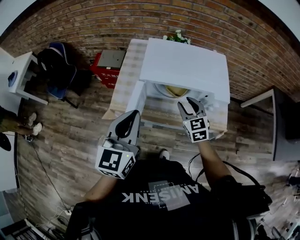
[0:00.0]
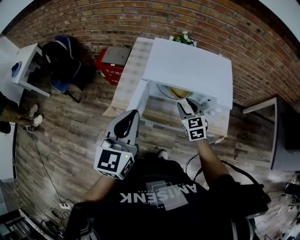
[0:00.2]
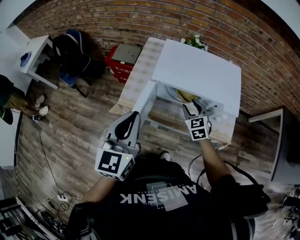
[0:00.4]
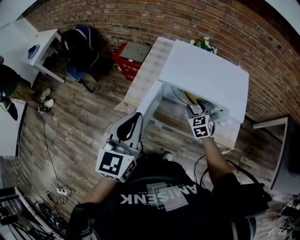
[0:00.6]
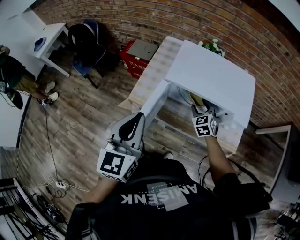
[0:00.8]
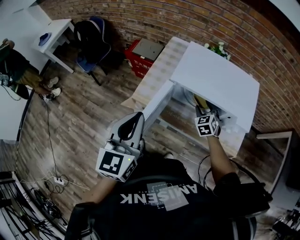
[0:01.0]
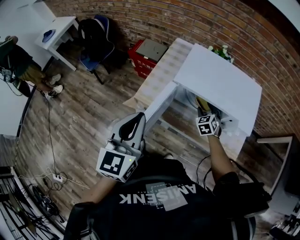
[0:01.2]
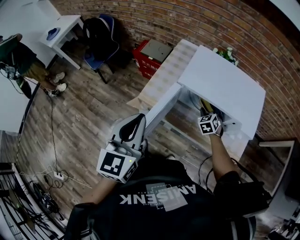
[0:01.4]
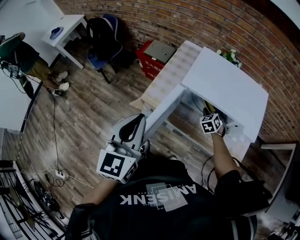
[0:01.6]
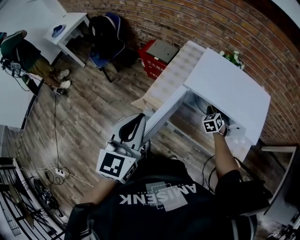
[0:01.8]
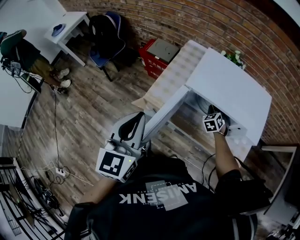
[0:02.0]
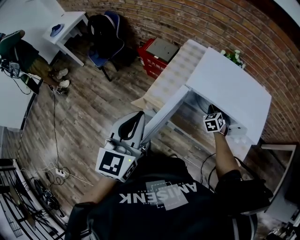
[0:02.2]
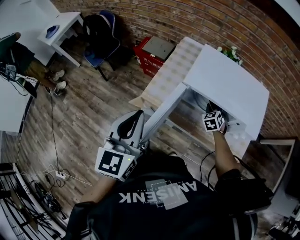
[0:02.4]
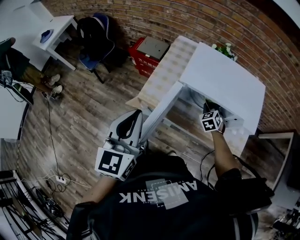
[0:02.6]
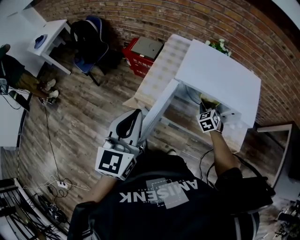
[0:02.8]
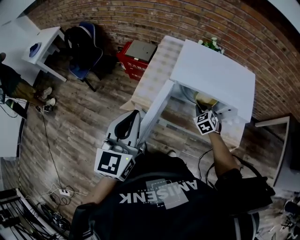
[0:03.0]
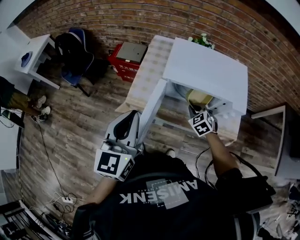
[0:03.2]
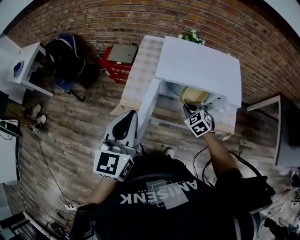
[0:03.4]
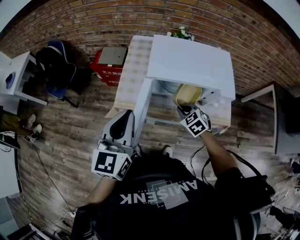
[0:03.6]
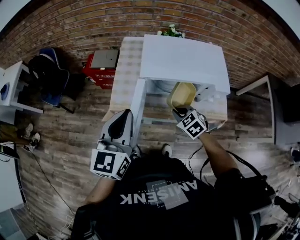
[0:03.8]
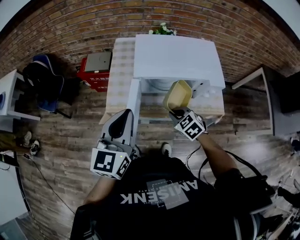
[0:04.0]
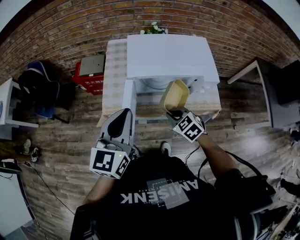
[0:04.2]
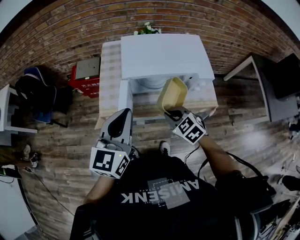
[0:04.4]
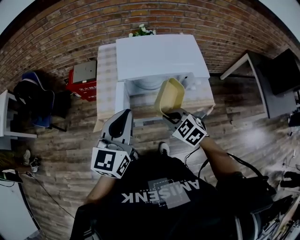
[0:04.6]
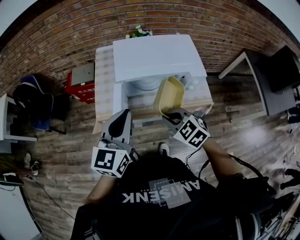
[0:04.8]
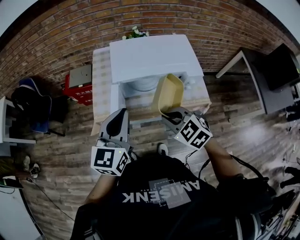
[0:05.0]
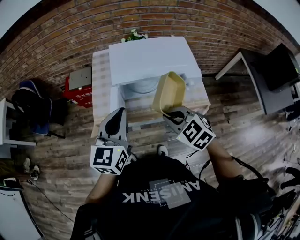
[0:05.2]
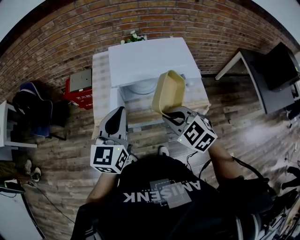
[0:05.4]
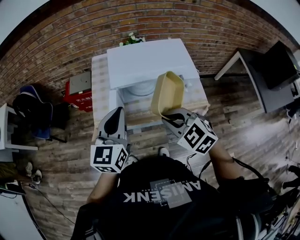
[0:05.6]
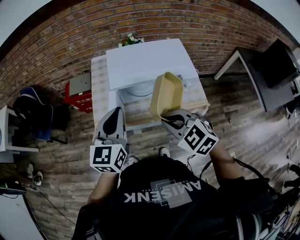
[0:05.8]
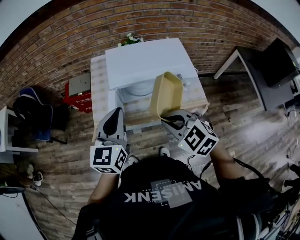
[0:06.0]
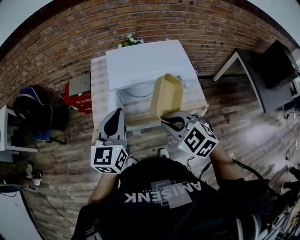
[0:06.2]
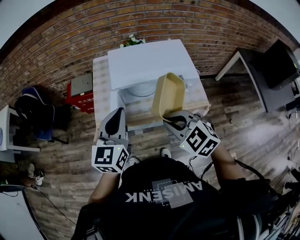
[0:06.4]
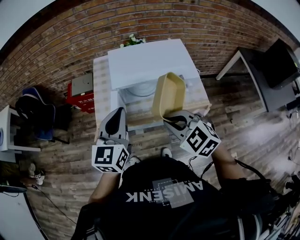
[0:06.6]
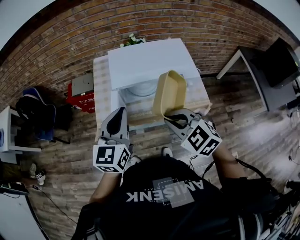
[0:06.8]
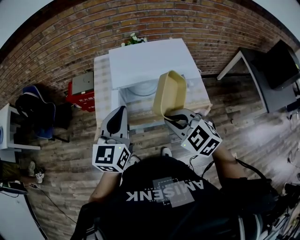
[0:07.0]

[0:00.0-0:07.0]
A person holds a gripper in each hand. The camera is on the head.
0:00.0 to 0:01.4: The right gripper goes some 15 cm downward and forward, and changes its angle by about 30 degrees. The left gripper travels to the left by about 5 cm, and swivels about 20 degrees.
0:01.4 to 0:02.8: The right gripper closes its fingers.
0:02.8 to 0:04.2: The left gripper travels to the right by some 5 cm, and swivels roughly 30 degrees; the right gripper heads backward and upward, covering about 20 cm.
0:04.2 to 0:05.6: The right gripper shifts about 15 cm upward.
0:05.6 to 0:07.0: There are only small adjustments of the grippers.

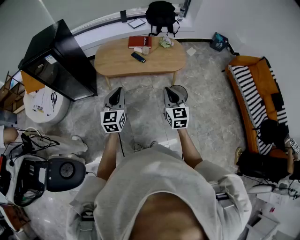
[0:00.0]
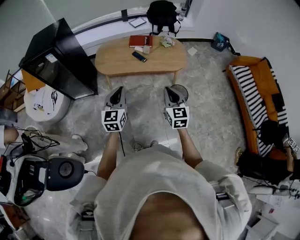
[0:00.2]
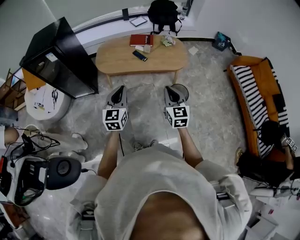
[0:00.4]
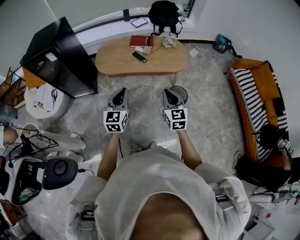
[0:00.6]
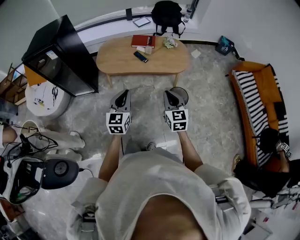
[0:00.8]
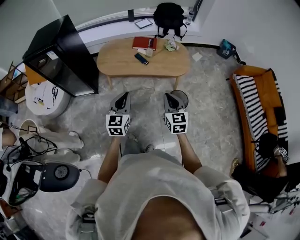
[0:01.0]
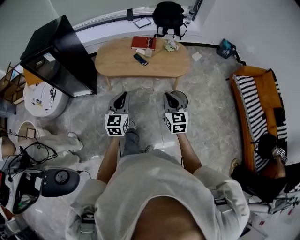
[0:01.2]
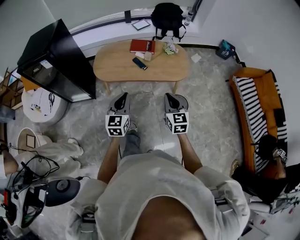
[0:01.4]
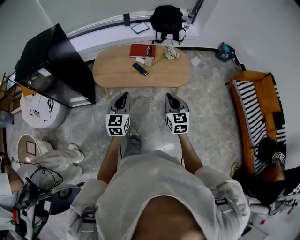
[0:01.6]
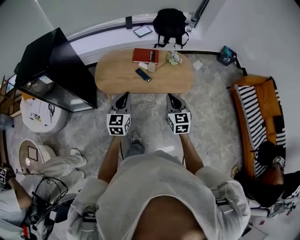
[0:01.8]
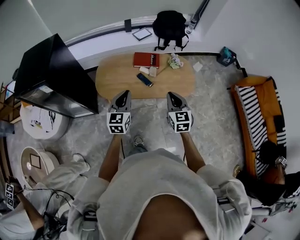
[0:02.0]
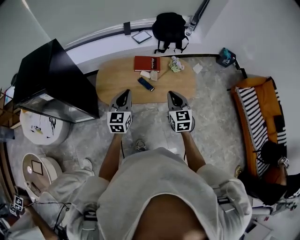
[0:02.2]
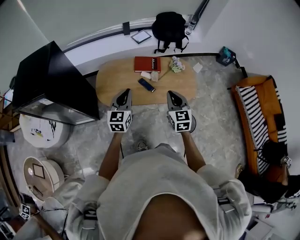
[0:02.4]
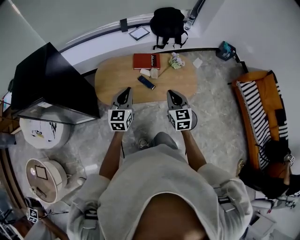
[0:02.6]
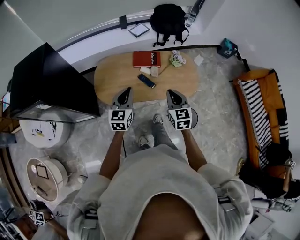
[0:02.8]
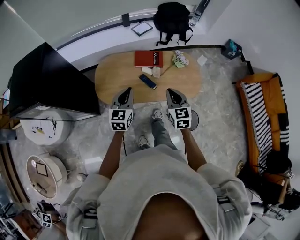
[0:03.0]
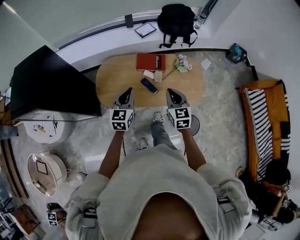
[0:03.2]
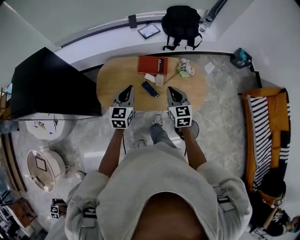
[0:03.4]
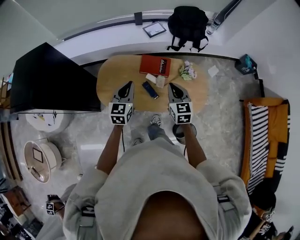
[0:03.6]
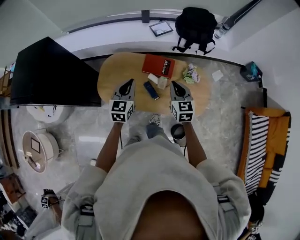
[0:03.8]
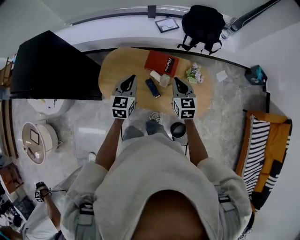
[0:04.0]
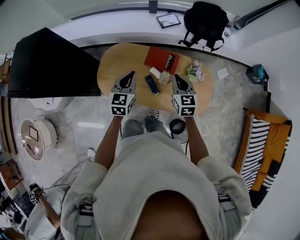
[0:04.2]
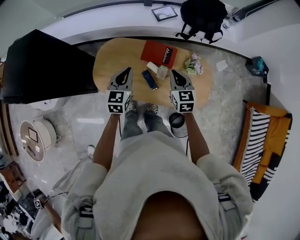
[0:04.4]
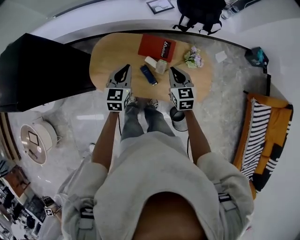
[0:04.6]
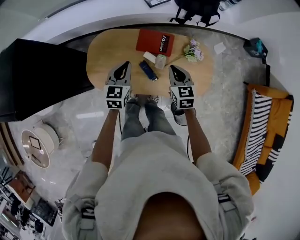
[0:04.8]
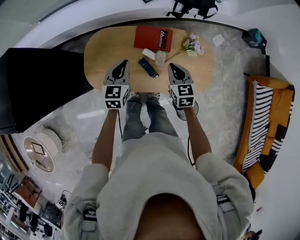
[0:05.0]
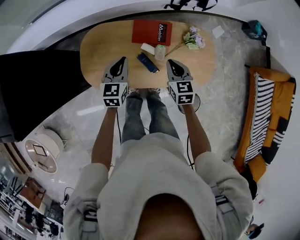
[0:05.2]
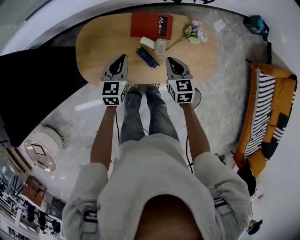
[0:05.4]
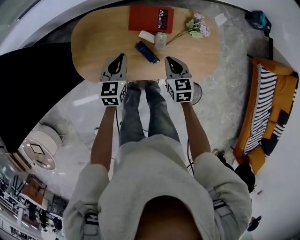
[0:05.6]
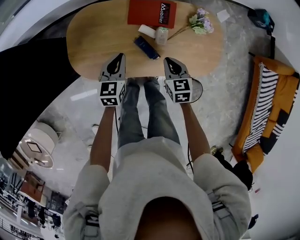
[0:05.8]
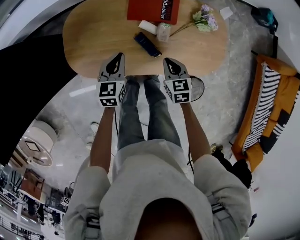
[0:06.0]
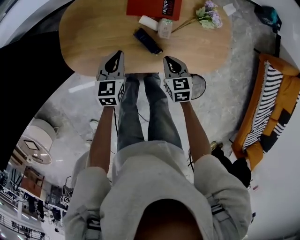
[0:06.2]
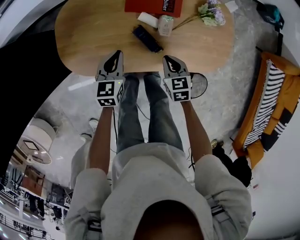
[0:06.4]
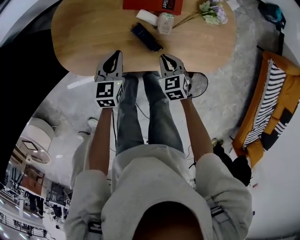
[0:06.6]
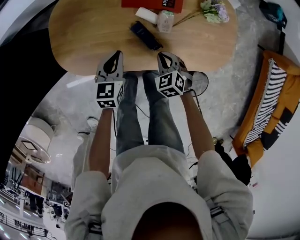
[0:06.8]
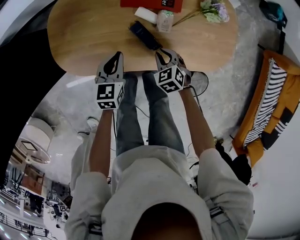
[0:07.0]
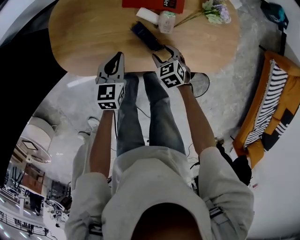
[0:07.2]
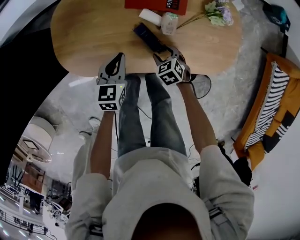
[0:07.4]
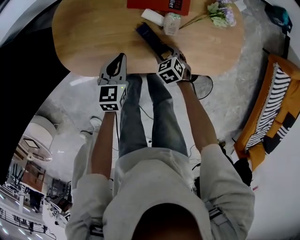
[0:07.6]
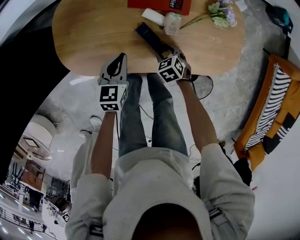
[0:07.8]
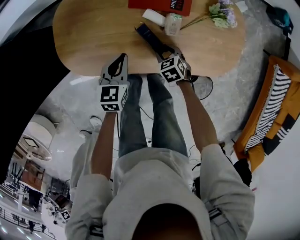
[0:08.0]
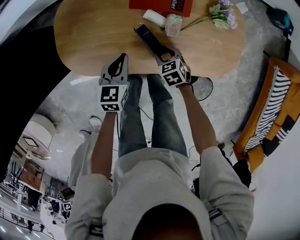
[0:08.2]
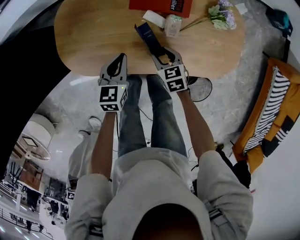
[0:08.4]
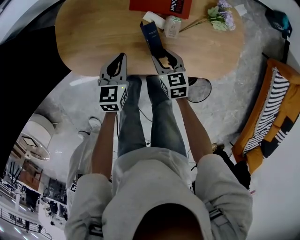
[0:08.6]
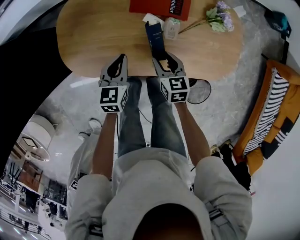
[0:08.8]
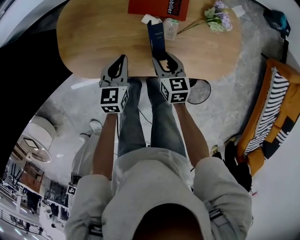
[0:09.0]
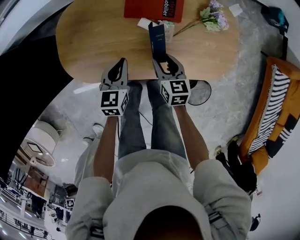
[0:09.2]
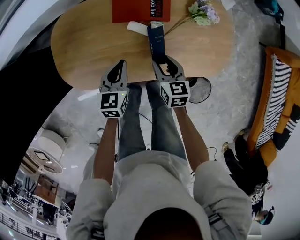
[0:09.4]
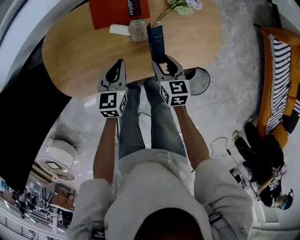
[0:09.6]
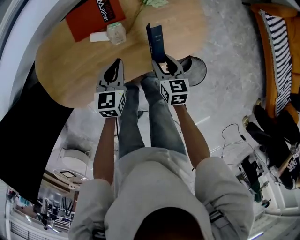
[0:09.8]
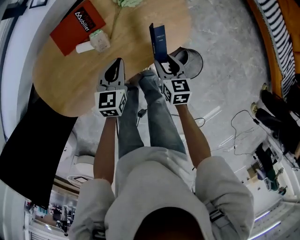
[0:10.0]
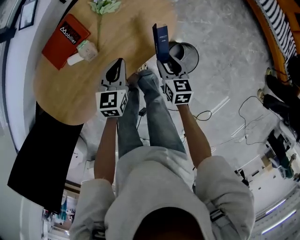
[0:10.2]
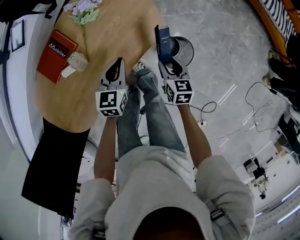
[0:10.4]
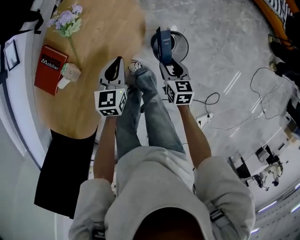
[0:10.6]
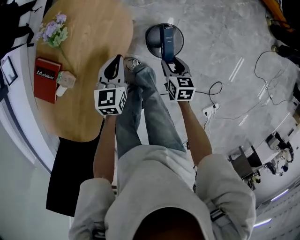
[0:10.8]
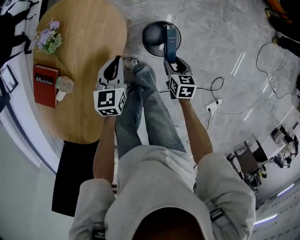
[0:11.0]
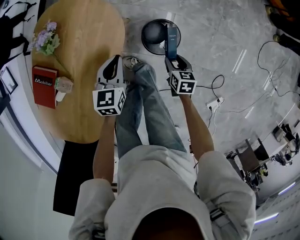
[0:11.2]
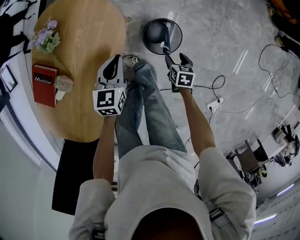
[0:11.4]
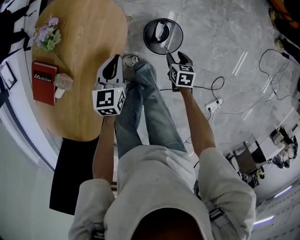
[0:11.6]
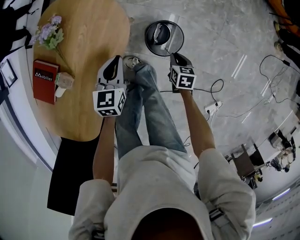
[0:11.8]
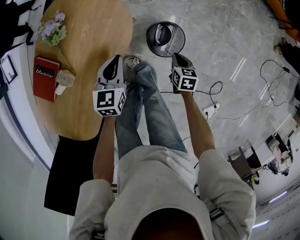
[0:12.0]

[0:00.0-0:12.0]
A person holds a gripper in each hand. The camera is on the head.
0:00.0 to 0:01.6: Both grippers travel together forward, about 15 cm.
0:01.6 to 0:03.0: The left gripper heads forward, covering roughly 20 cm. Meanwhile the right gripper travels forward and to the left by roughly 20 cm.
0:03.0 to 0:04.4: The grippers both shift forward by roughly 20 cm.
0:04.4 to 0:06.0: The right gripper travels downward and backward by approximately 25 cm, and swivels some 20 degrees. Meanwhile the left gripper travels downward by approximately 20 cm.
0:06.0 to 0:07.6: The left gripper travels downward by some 10 cm; the right gripper goes about 15 cm downward, turns by roughly 30 degrees, and opens its fingers.
0:07.6 to 0:09.0: The right gripper shifts about 10 cm upward, and rotates approximately 40 degrees.
0:09.0 to 0:10.4: The left gripper changes place by approximately 35 cm, and turns by approximately 50 degrees; the right gripper moves approximately 35 cm, and swivels approximately 50 degrees.
0:10.4 to 0:12.0: The right gripper goes approximately 15 cm to the right and downward, changes its angle by approximately 20 degrees, and closes; the left gripper shifts roughly 10 cm to the right.

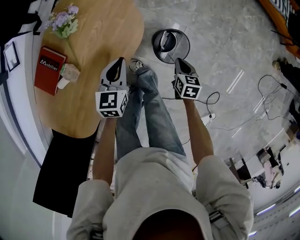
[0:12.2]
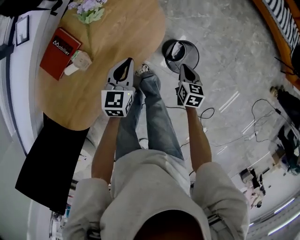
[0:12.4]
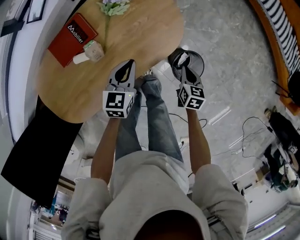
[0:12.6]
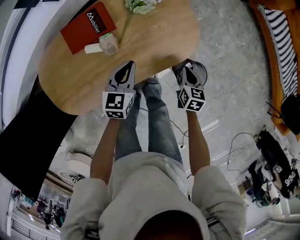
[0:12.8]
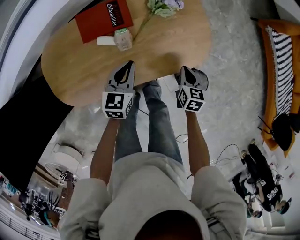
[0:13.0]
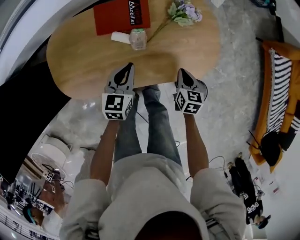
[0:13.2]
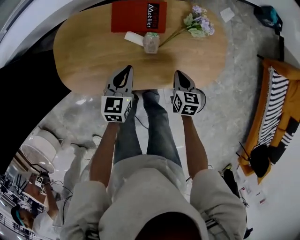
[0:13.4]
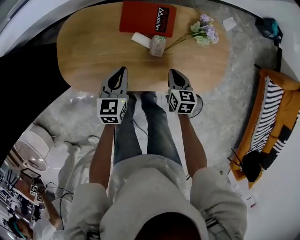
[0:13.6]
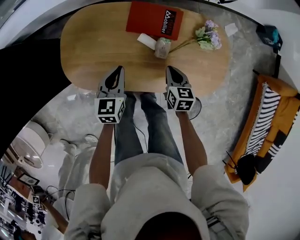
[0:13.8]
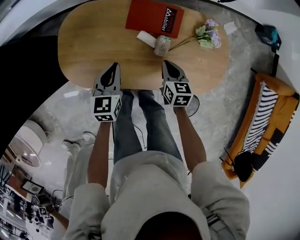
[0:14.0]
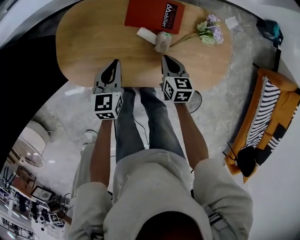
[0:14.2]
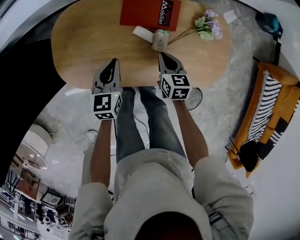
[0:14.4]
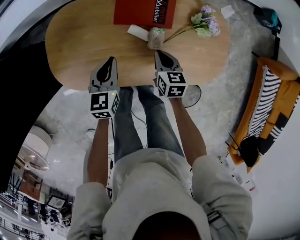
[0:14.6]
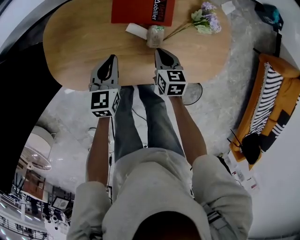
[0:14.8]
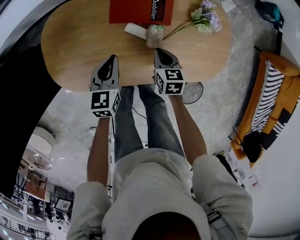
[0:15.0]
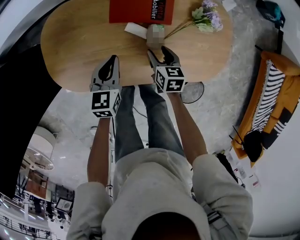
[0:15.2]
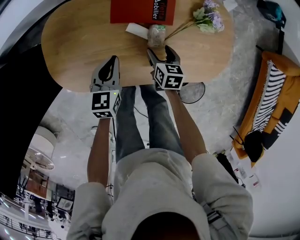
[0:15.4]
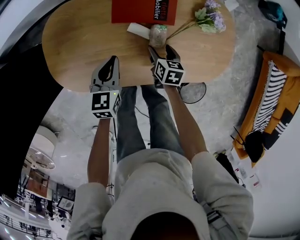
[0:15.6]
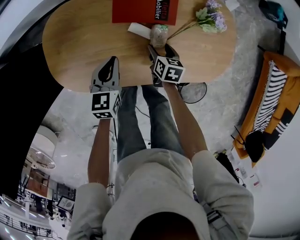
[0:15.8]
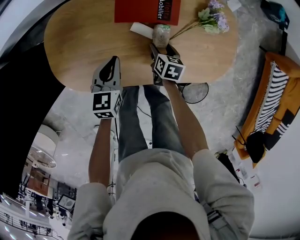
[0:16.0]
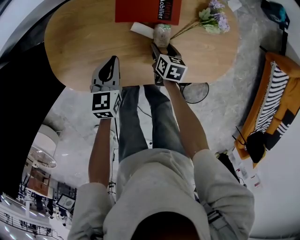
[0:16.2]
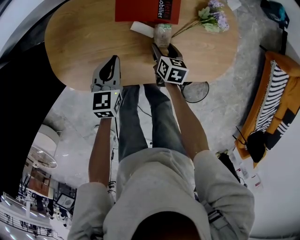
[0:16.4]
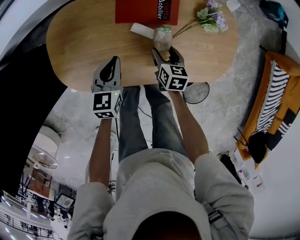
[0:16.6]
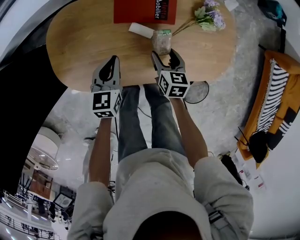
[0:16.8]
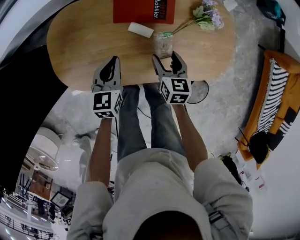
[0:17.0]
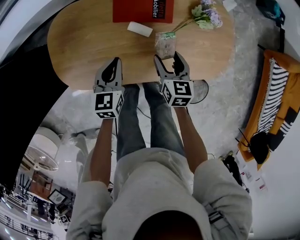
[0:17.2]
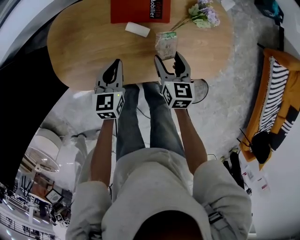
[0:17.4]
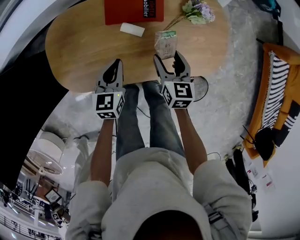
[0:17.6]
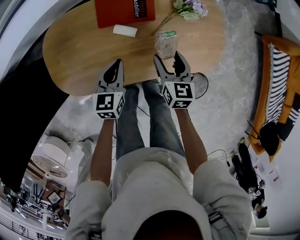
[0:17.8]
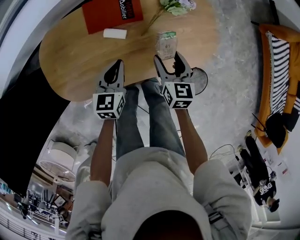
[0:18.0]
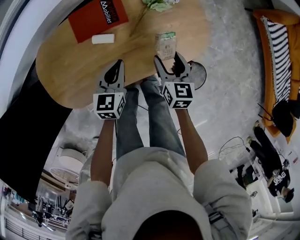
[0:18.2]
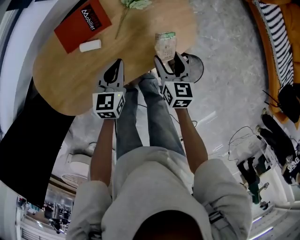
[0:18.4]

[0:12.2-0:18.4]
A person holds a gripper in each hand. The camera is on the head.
0:12.2 to 0:13.8: The left gripper moves roughly 40 cm, and turns by roughly 60 degrees. The right gripper moves some 50 cm, and rotates roughly 70 degrees.
0:13.8 to 0:15.4: The right gripper is displaced downward by approximately 10 cm, and opens its fingers, while the left gripper shifts by about 5 cm.
0:15.4 to 0:16.8: There are only small adjustments of the grippers.
0:16.8 to 0:18.4: The right gripper moves some 25 cm, and swivels some 30 degrees. The left gripper moves some 20 cm, and rotates about 30 degrees.
